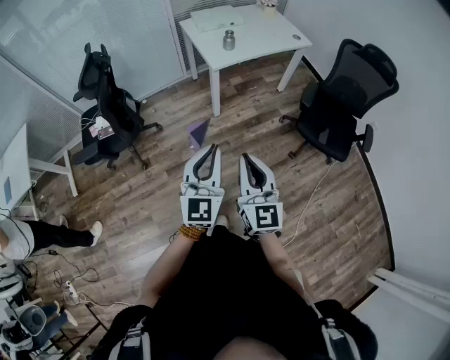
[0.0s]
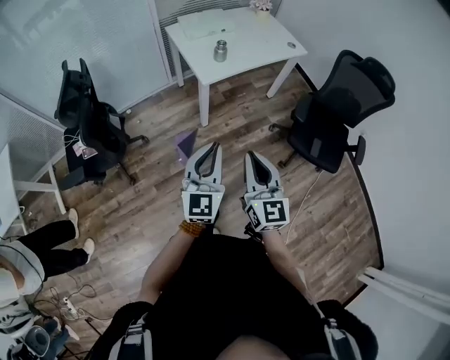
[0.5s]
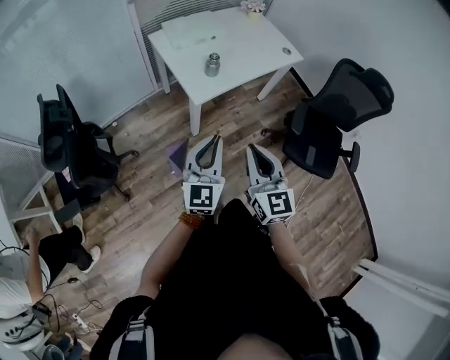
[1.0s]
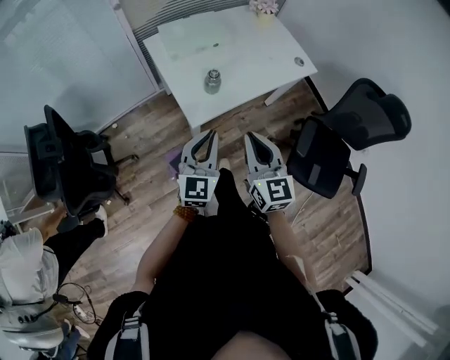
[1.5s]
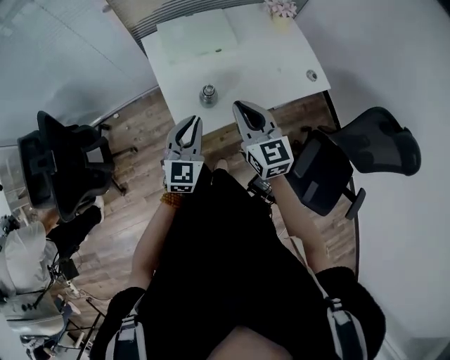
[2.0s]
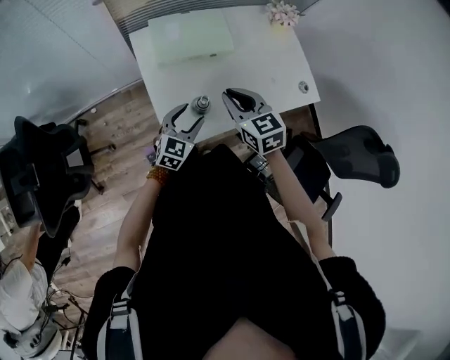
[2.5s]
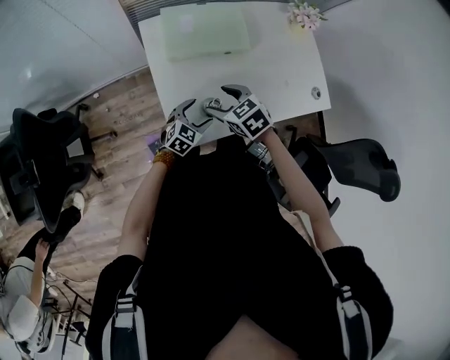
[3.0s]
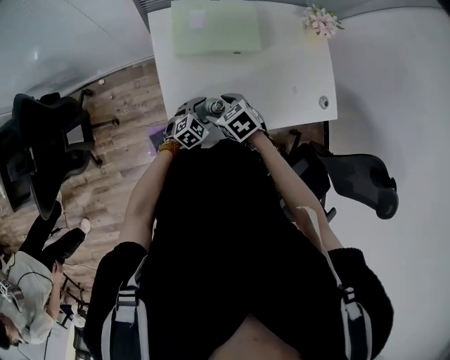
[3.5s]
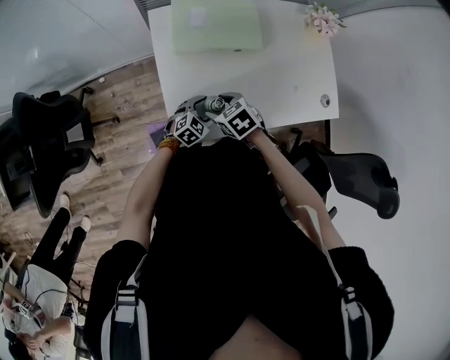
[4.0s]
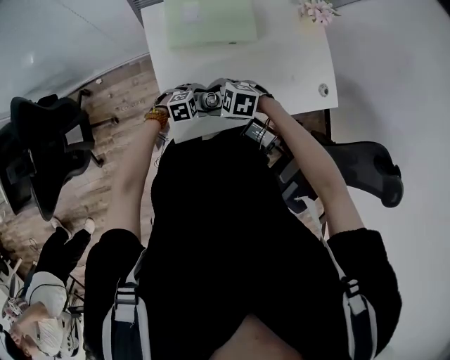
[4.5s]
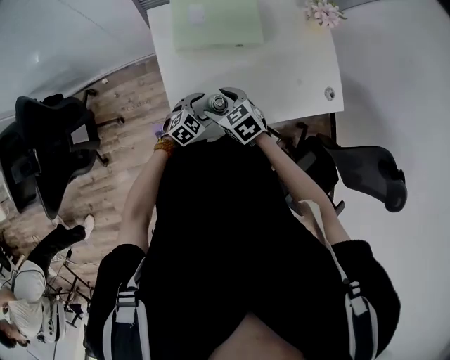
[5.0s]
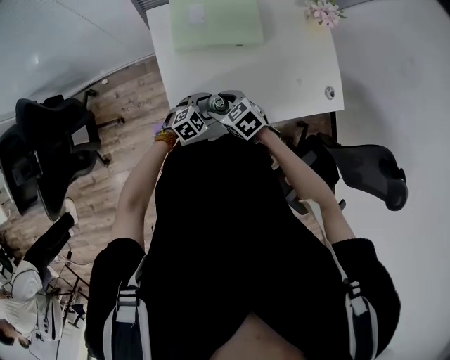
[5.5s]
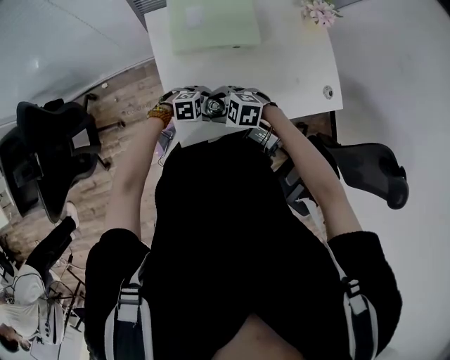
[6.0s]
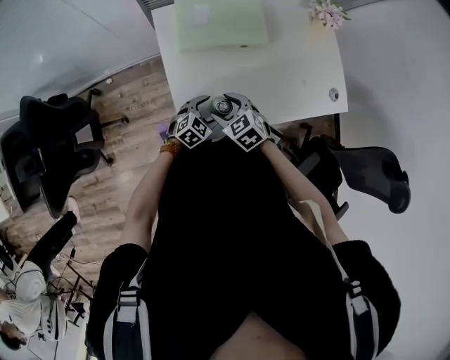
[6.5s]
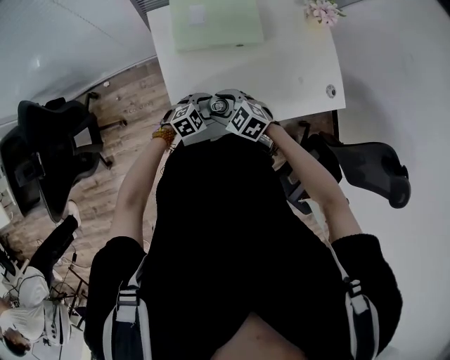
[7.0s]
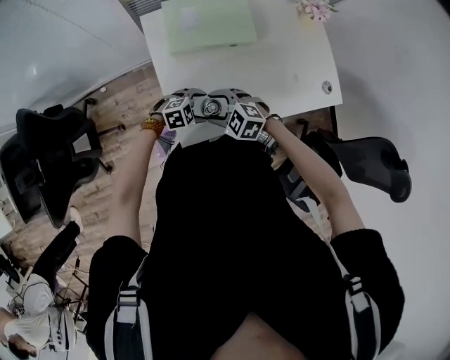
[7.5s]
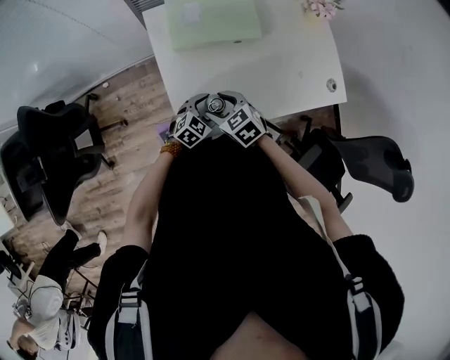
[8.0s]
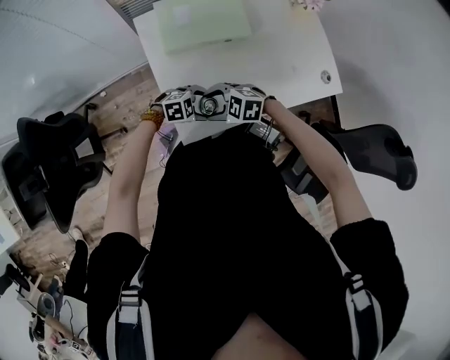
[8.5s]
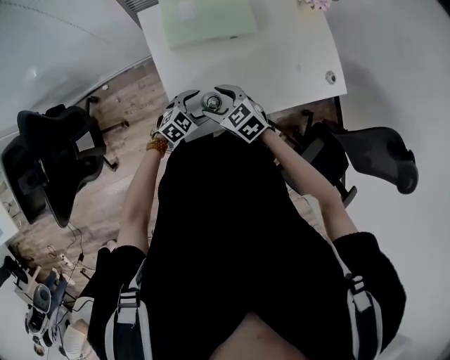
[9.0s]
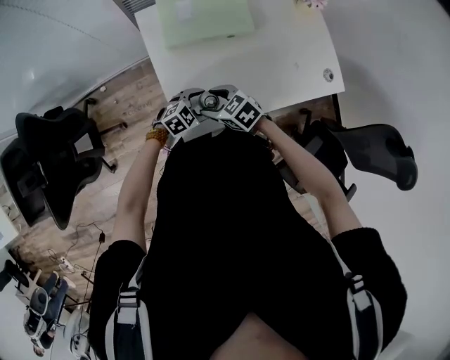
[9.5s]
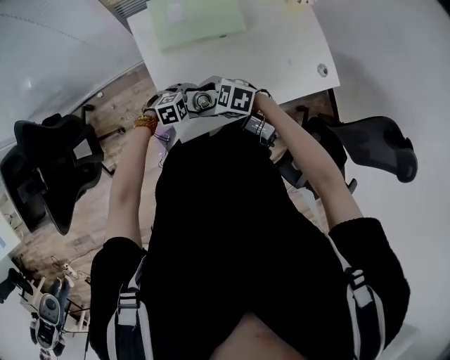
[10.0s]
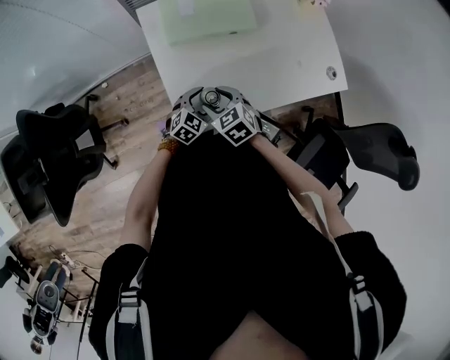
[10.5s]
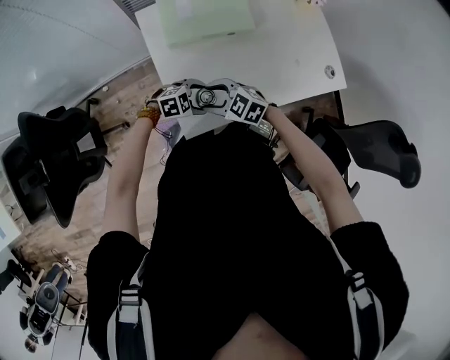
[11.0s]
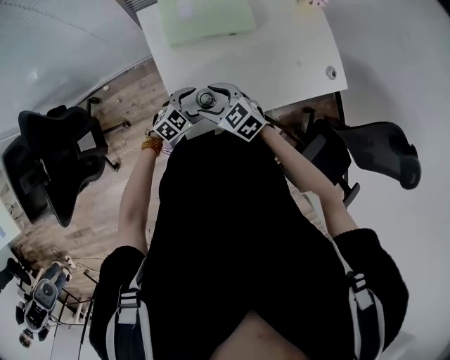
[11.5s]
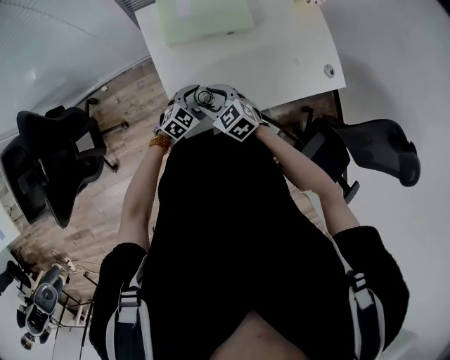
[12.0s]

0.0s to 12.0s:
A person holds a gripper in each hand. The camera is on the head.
0.0s to 2.0s: Both grippers are carried forward, roughly 70 cm. The right gripper swivels roughly 20 degrees.
2.0s to 4.0s: The right gripper goes about 25 cm downward and forward, angles its fingers downward, by some 50 degrees, and opens its fingers; the left gripper goes roughly 30 cm downward, swivels approximately 40 degrees, and opens its fingers.
4.0s to 6.0s: The left gripper rotates roughly 40 degrees; the right gripper changes its angle by roughly 40 degrees.
6.0s to 8.0s: The left gripper swivels roughly 40 degrees, while the right gripper changes its angle by about 40 degrees.
8.0s to 10.0s: The right gripper turns by roughly 30 degrees; the left gripper rotates about 40 degrees.
10.0s to 12.0s: The left gripper changes its angle by approximately 30 degrees, while the right gripper turns by approximately 30 degrees.

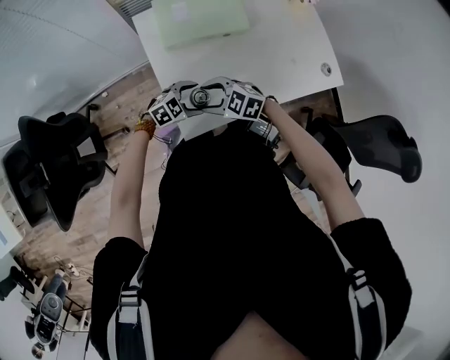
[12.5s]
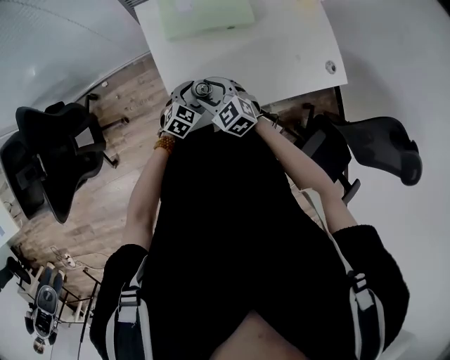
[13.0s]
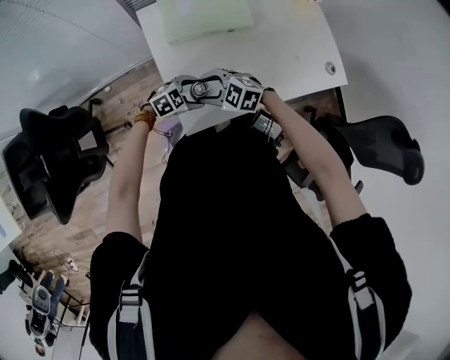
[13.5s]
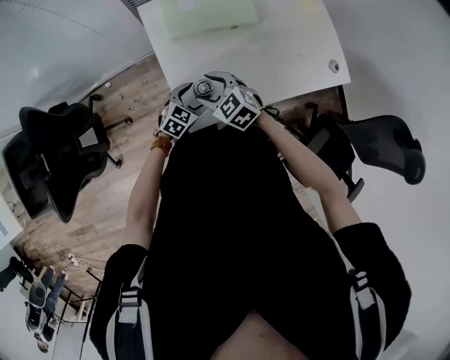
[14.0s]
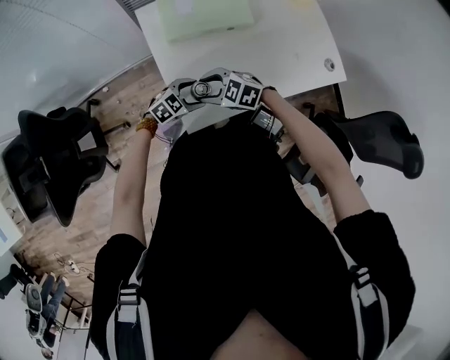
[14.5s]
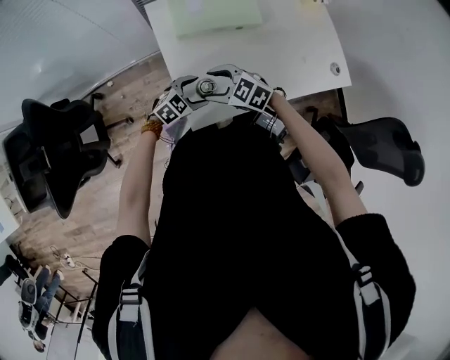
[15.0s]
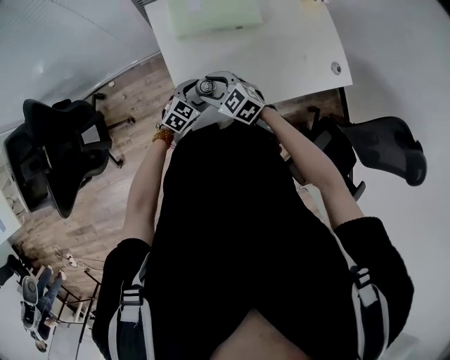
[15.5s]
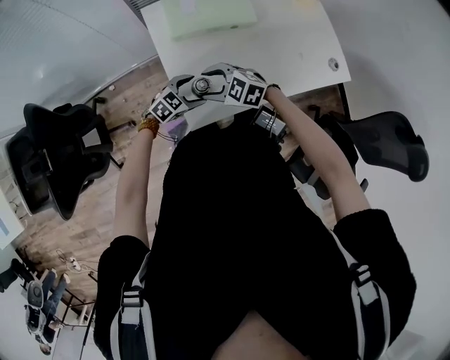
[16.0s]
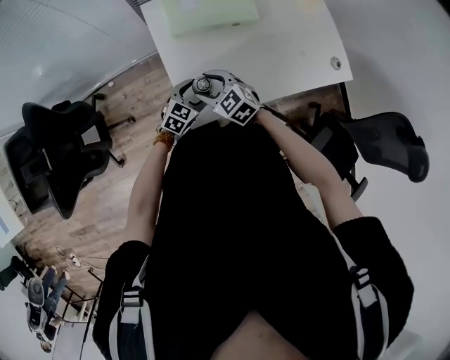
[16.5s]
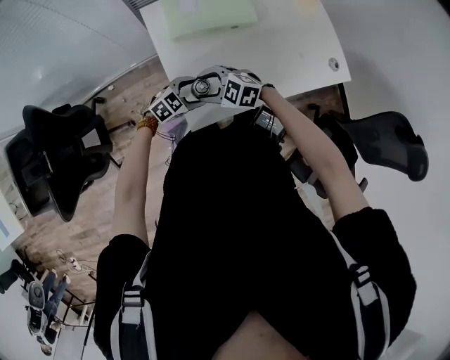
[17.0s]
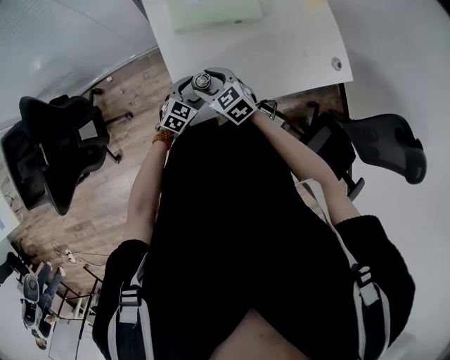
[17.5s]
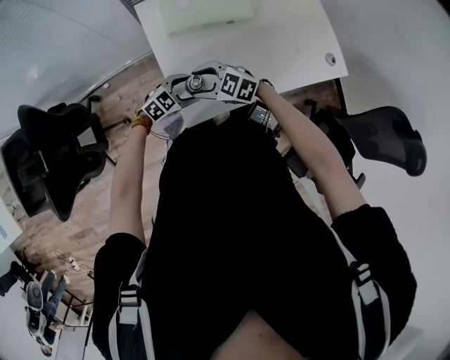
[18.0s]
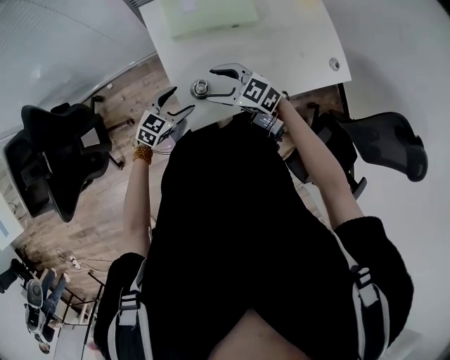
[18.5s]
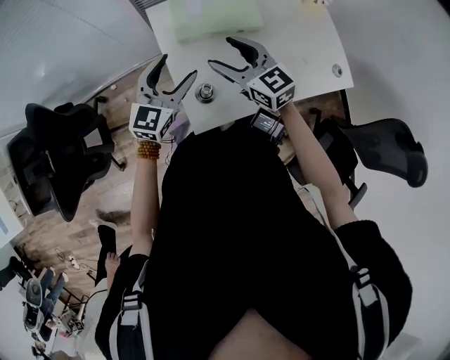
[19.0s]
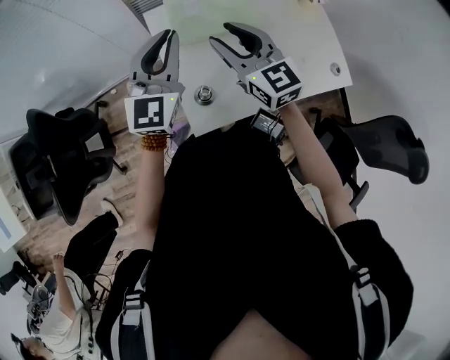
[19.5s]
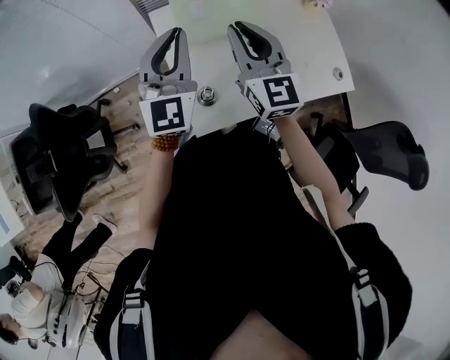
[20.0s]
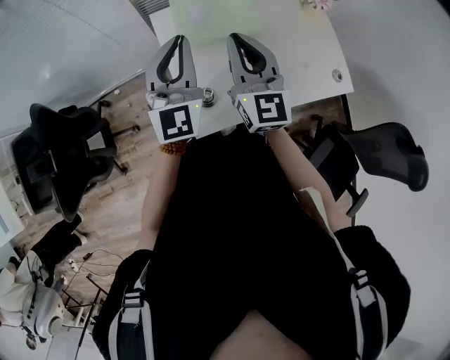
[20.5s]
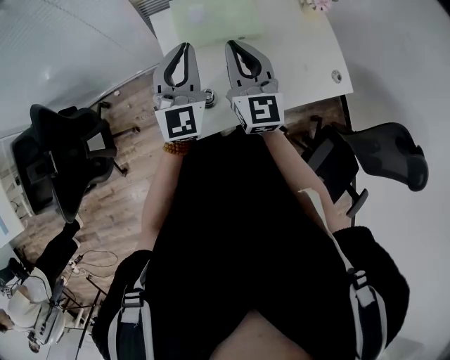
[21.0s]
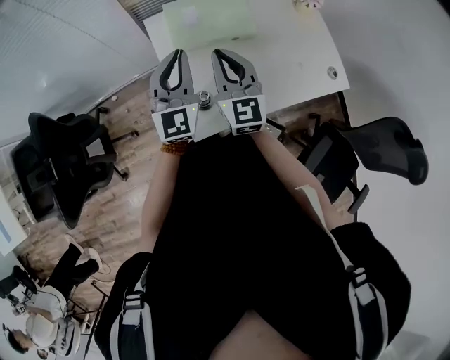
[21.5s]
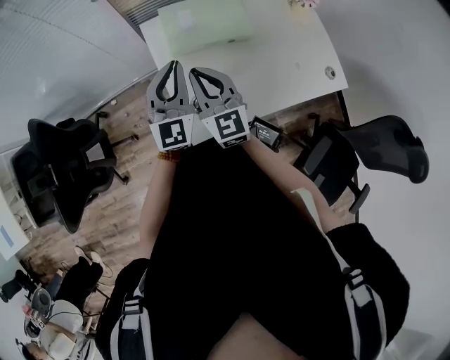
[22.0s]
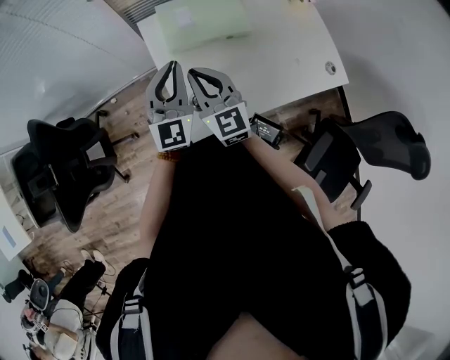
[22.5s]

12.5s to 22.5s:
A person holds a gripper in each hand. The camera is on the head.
14.5s to 16.5s: The left gripper swivels roughly 30 degrees. The right gripper turns by some 20 degrees.
16.5s to 18.5s: The right gripper changes place by approximately 5 cm, while the left gripper shifts by roughly 10 cm.
18.5s to 20.5s: The two grippers go approximately 25 cm upward. The left gripper tips its fingers upward by about 40 degrees, and closes. Meanwhile the right gripper tips its fingers upward by some 30 degrees, and closes.
20.5s to 22.5s: The left gripper goes roughly 10 cm downward. The right gripper is displaced downward and to the left by roughly 10 cm.

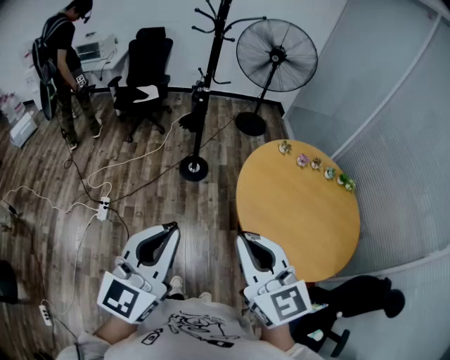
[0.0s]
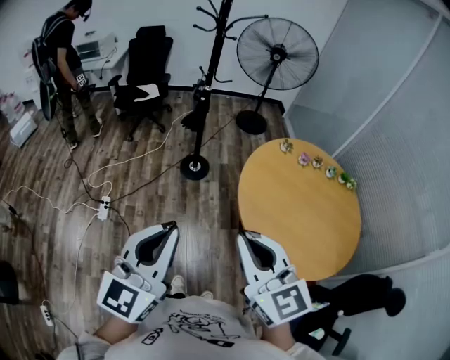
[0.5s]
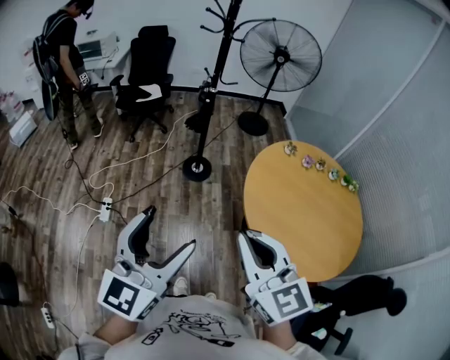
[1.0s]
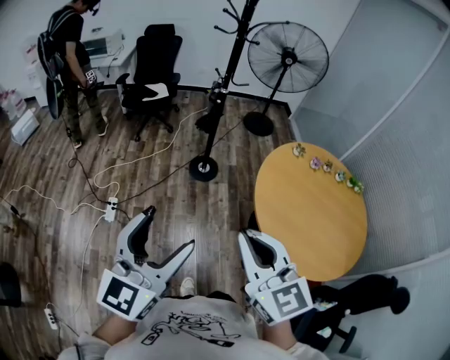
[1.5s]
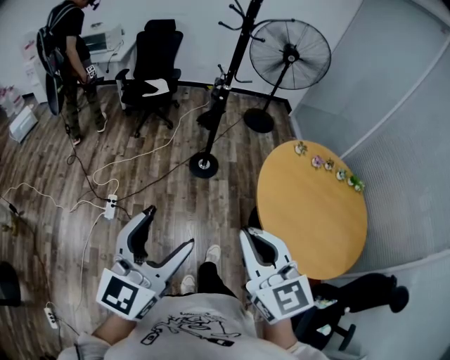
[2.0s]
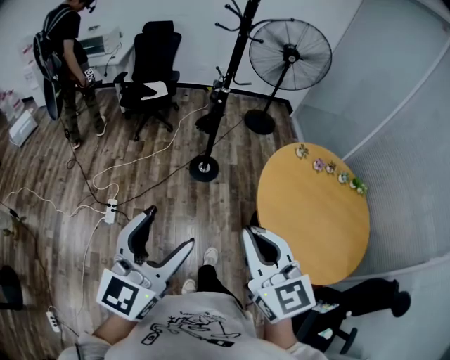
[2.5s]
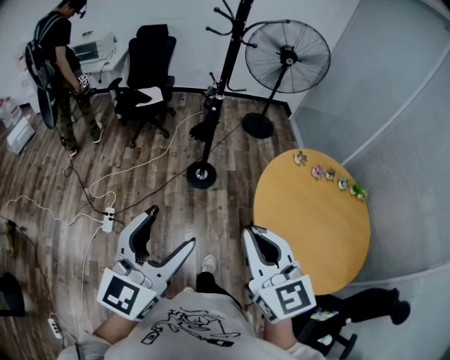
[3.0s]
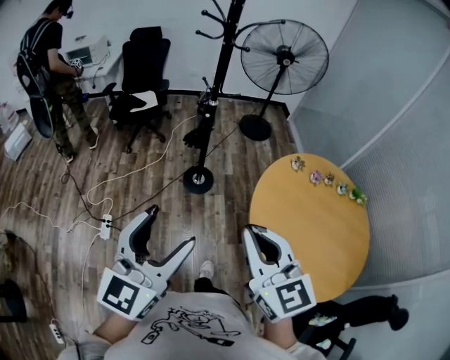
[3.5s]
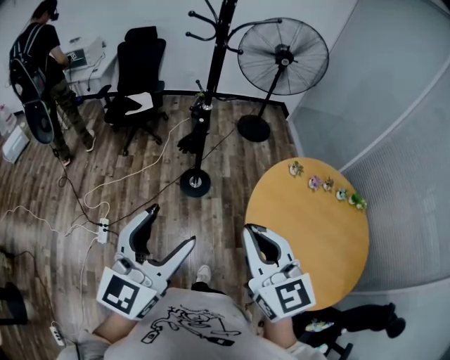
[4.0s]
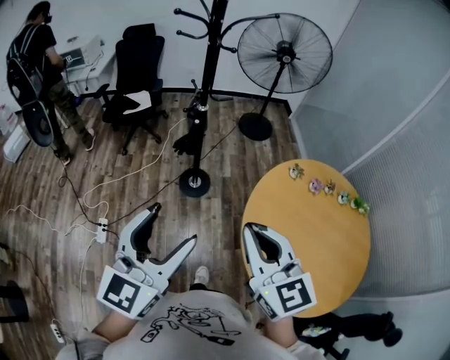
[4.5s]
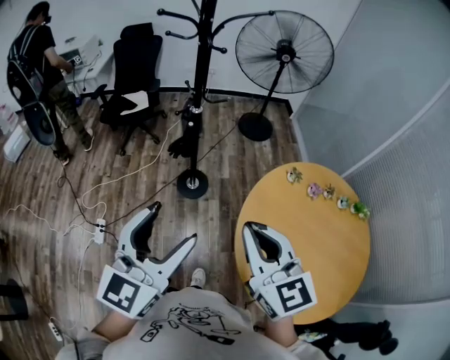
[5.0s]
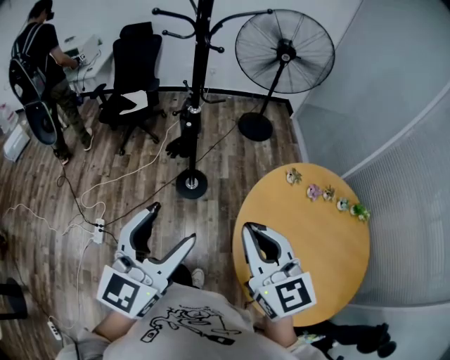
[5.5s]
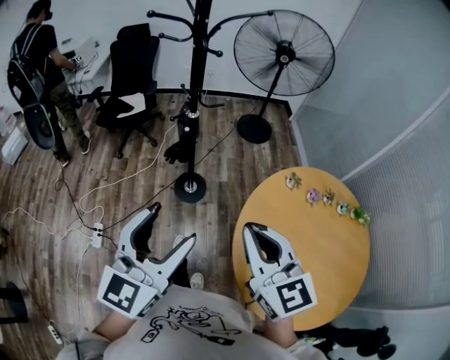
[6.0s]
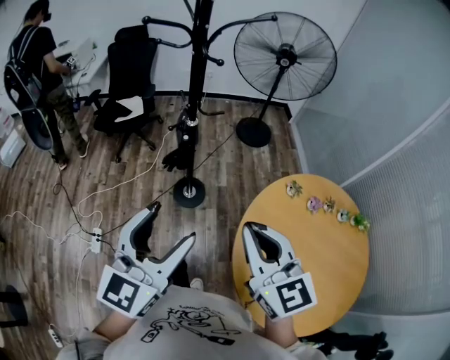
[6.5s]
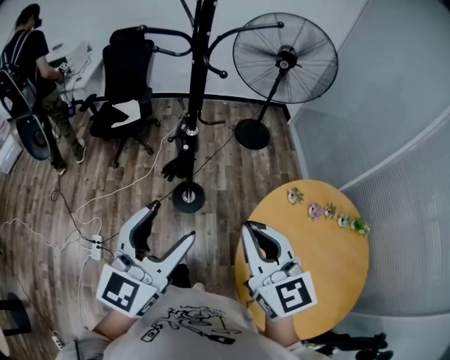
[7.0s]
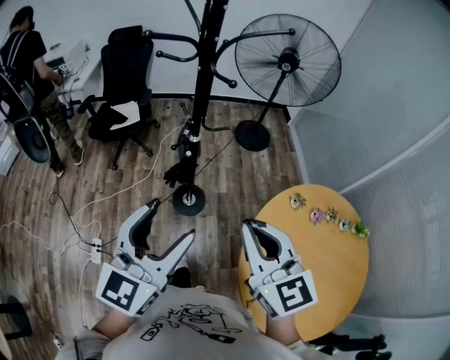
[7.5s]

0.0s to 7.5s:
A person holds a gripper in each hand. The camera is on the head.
0.0s to 2.0s: The grippers both shift to the left by roughly 10 cm. The left gripper opens its fingers.
2.0s to 4.0s: Both grippers travel together forward and to the right, approximately 20 cm.
4.0s to 5.5s: Both grippers travel together forward and to the right, approximately 10 cm.
5.5s to 7.5s: Both grippers travel together forward, approximately 15 cm.
